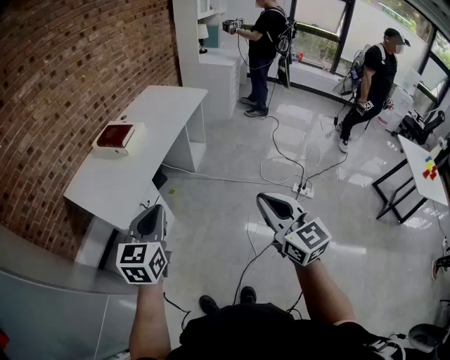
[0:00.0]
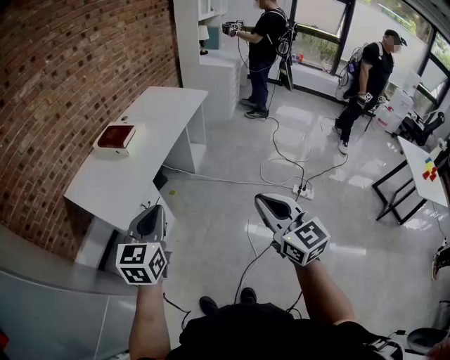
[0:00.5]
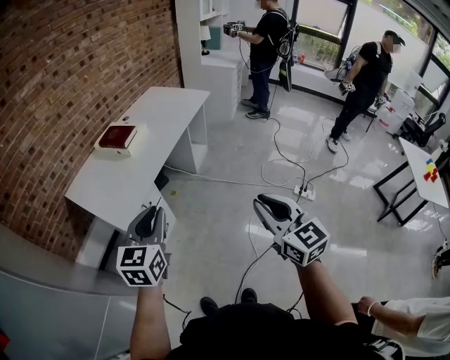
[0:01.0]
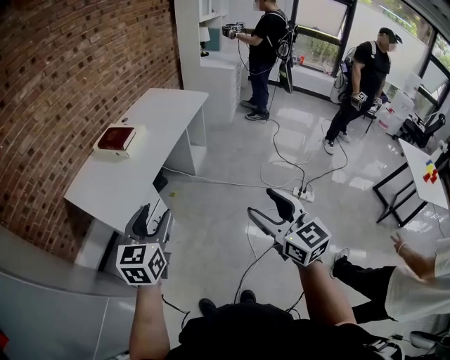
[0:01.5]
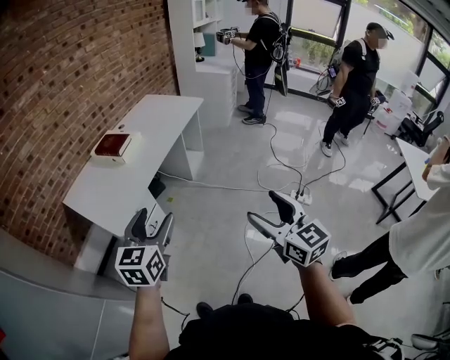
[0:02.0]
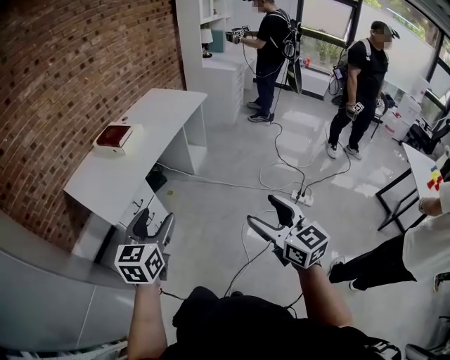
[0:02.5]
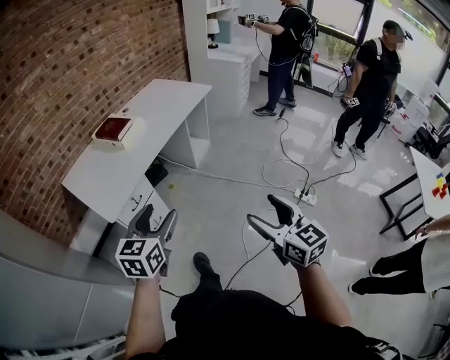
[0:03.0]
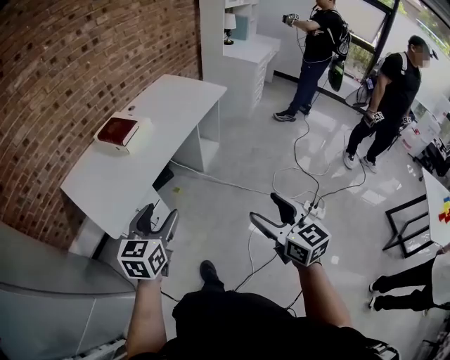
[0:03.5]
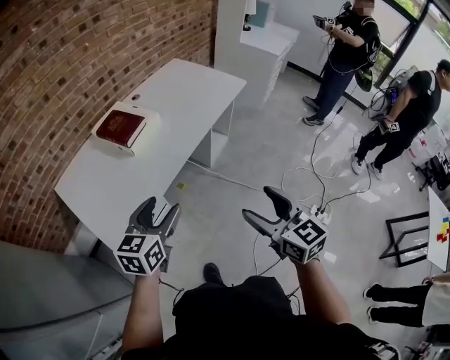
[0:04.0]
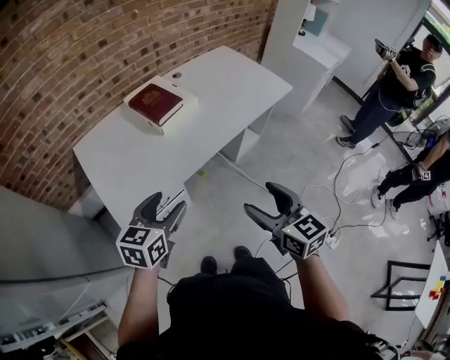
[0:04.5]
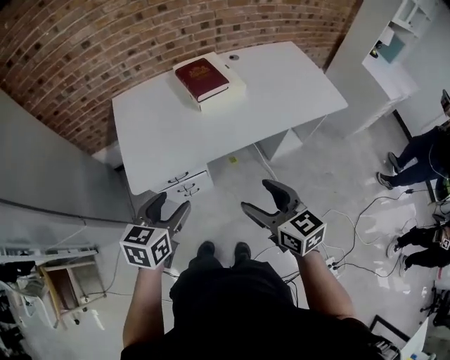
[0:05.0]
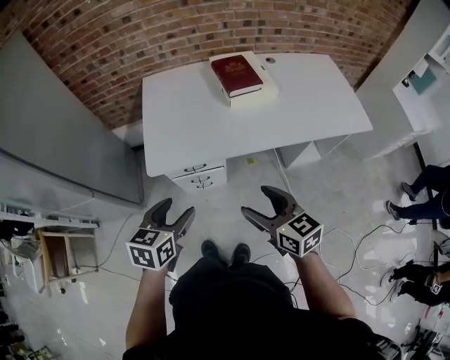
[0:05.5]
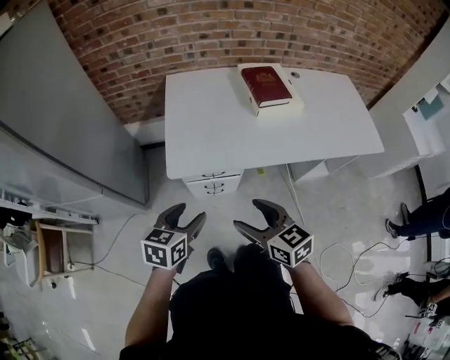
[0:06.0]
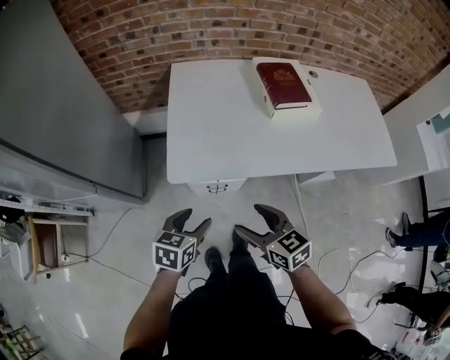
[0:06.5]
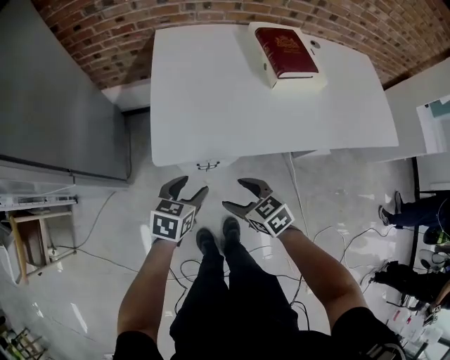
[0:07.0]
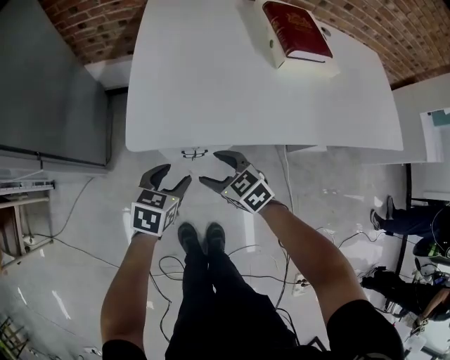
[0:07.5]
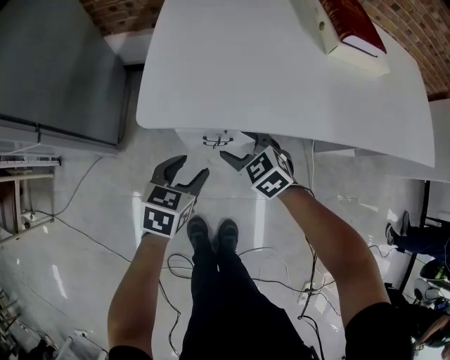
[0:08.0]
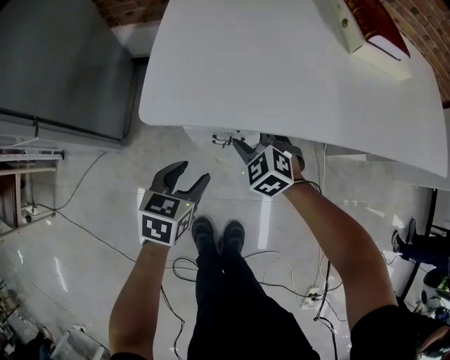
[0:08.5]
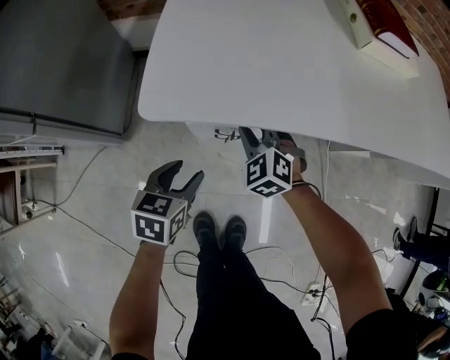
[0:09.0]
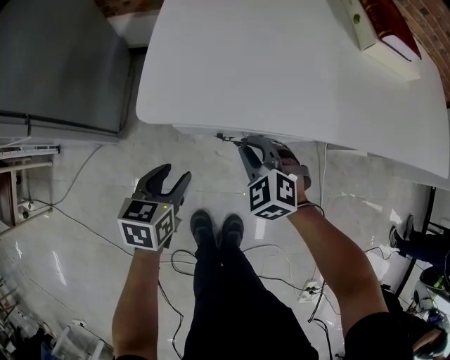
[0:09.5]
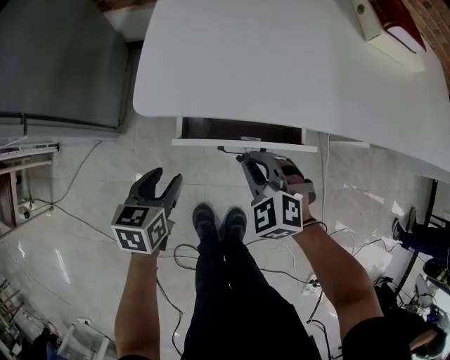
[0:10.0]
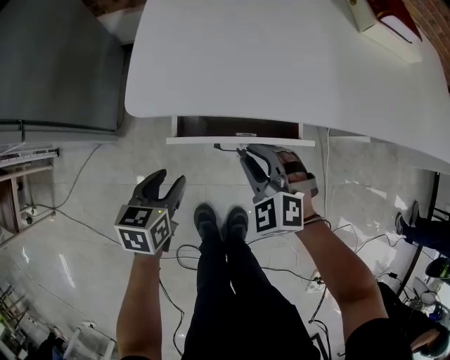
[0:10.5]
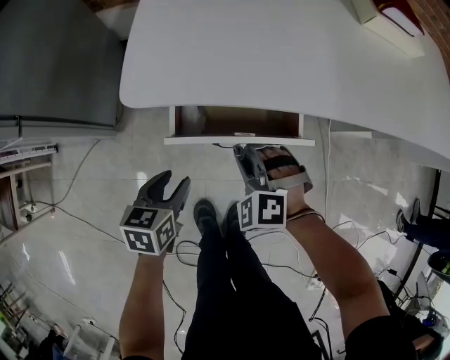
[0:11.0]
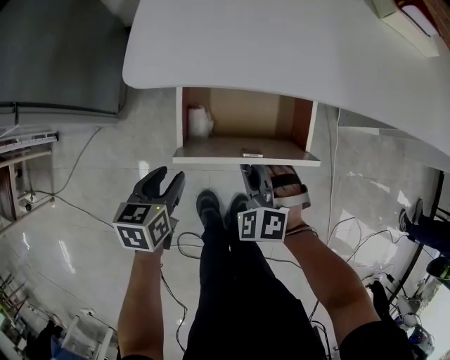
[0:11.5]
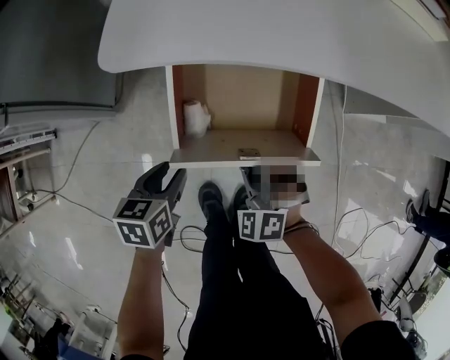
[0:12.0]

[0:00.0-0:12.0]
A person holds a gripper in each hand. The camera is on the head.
0:00.0 to 0:02.0: The right gripper opens its fingers, while the left gripper opens its fingers.
0:02.0 to 0:04.0: The two grippers go about 30 cm forward.
0:04.0 to 0:06.0: The left gripper moves approximately 20 cm, and rotates about 40 degrees. The right gripper ends up roughly 25 cm from where it was, and changes its angle by about 60 degrees.
0:06.0 to 0:08.0: The right gripper travels downward and forward by approximately 40 cm, and turns by approximately 40 degrees. The left gripper travels downward by approximately 30 cm.
0:08.0 to 0:10.0: The left gripper travels to the left and downward by about 10 cm. Meanwhile the right gripper travels backward by some 5 cm, and closes.
0:10.0 to 0:12.0: The left gripper moves downward, about 5 cm, while the right gripper shifts roughly 10 cm downward and backward.

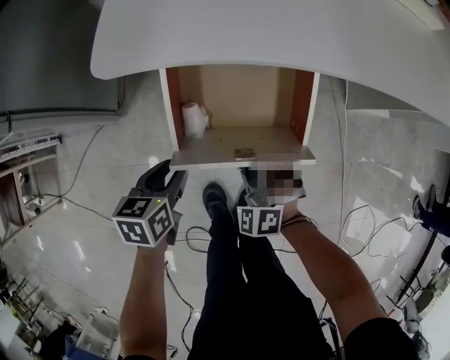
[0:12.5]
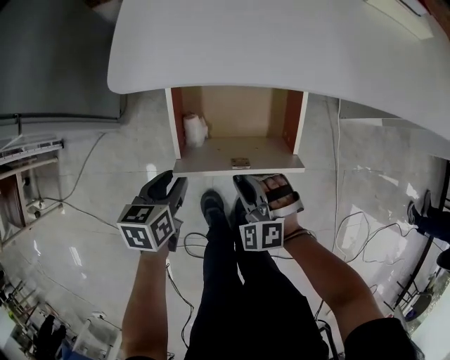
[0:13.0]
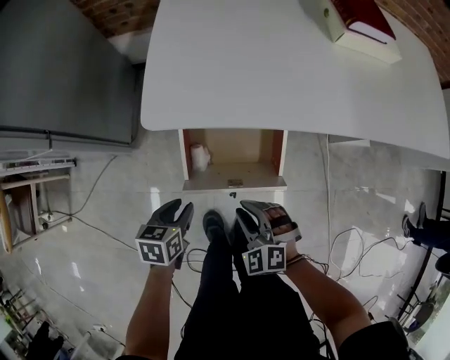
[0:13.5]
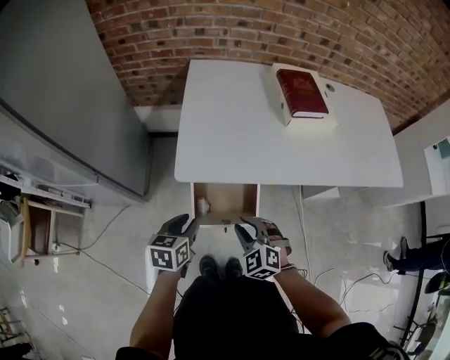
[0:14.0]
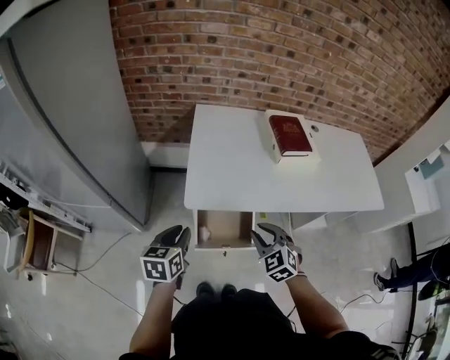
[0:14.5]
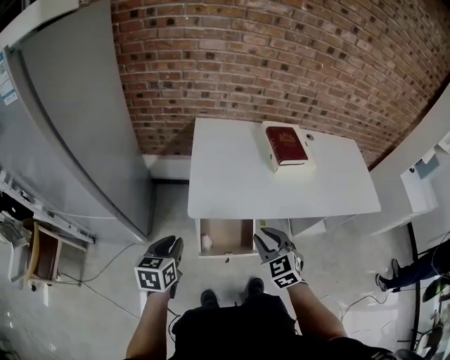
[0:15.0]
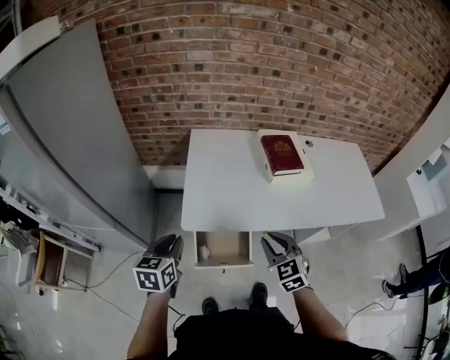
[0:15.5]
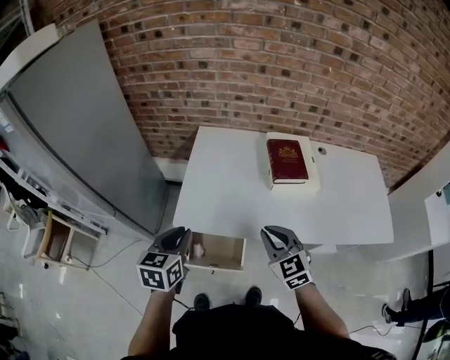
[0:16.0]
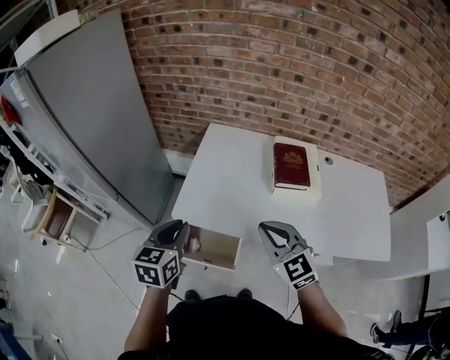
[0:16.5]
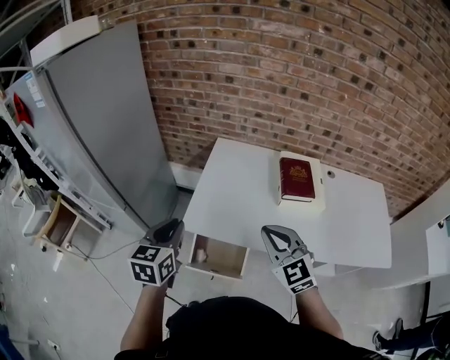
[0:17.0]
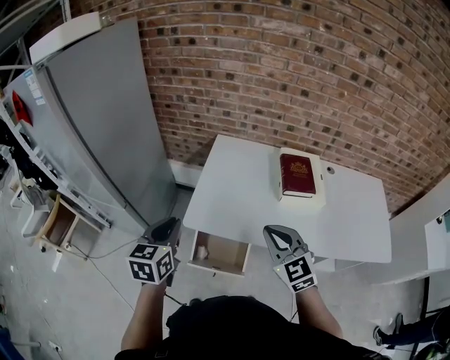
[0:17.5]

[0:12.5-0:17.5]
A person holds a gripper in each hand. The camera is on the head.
0:12.5 to 0:15.0: Both grippers travel together upward, approximately 40 cm. The left gripper rotates about 20 degrees; the right gripper changes its angle by approximately 30 degrees.
0:15.0 to 0:17.5: The right gripper goes approximately 15 cm upward, to the right and forward, and turns by about 20 degrees; the left gripper shifts about 15 cm upward and to the right.

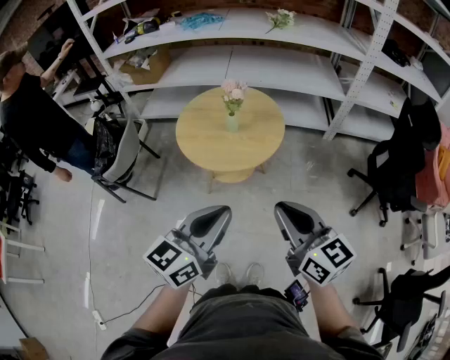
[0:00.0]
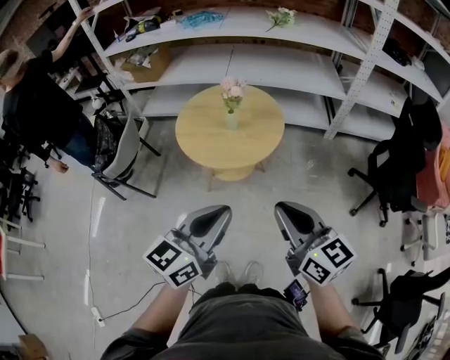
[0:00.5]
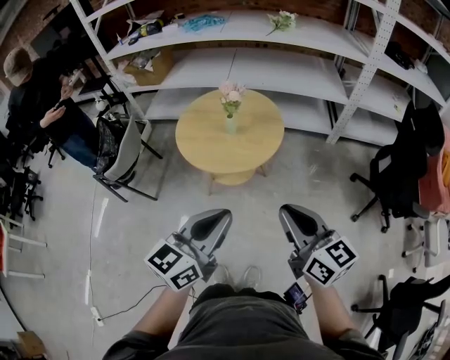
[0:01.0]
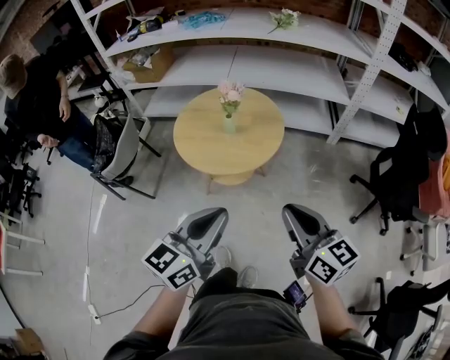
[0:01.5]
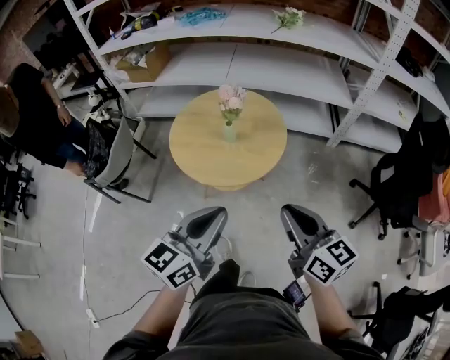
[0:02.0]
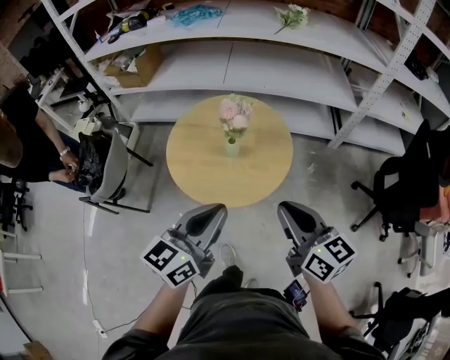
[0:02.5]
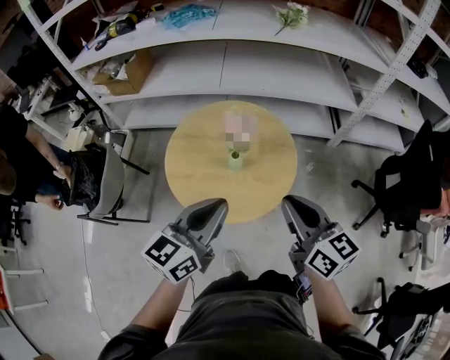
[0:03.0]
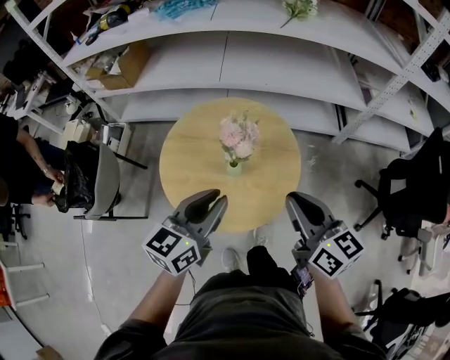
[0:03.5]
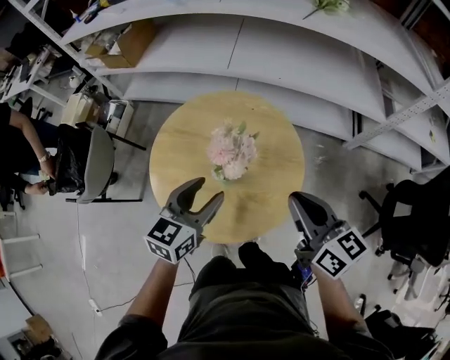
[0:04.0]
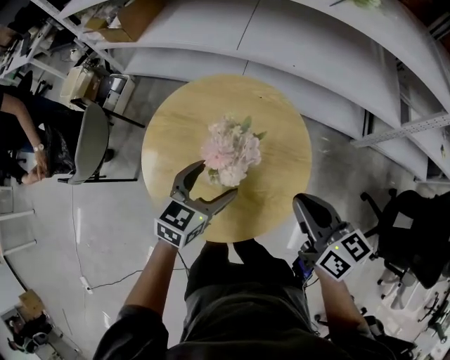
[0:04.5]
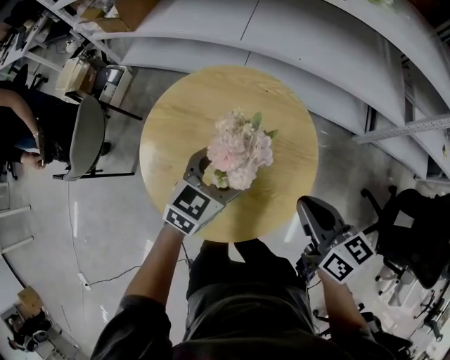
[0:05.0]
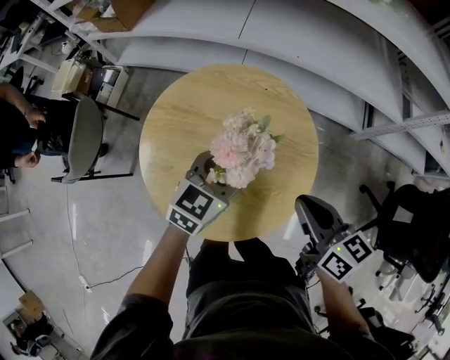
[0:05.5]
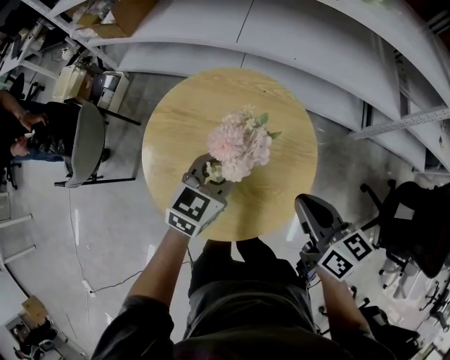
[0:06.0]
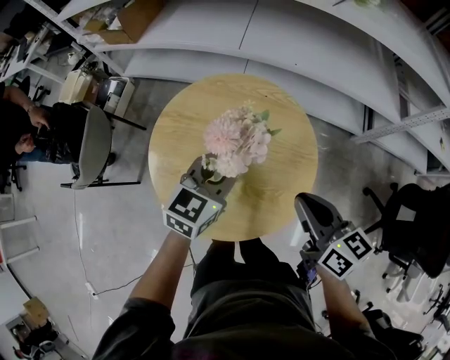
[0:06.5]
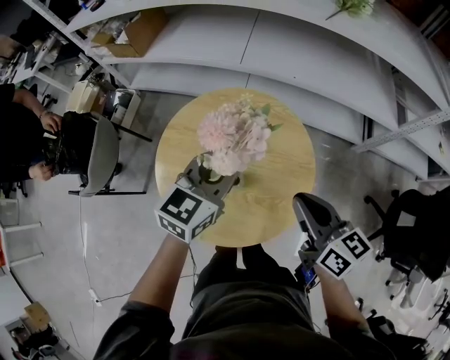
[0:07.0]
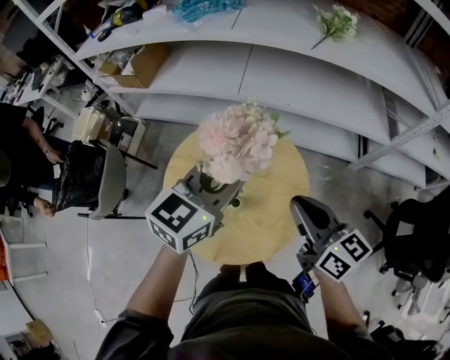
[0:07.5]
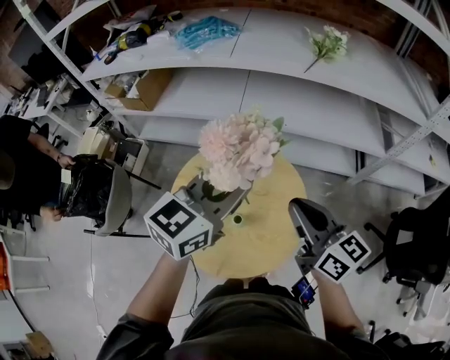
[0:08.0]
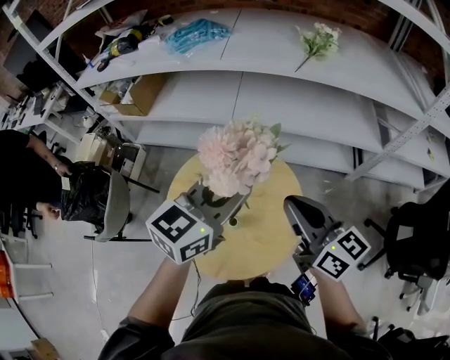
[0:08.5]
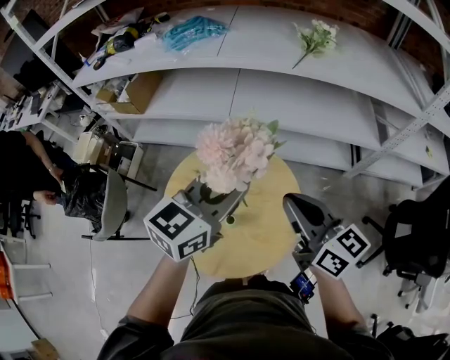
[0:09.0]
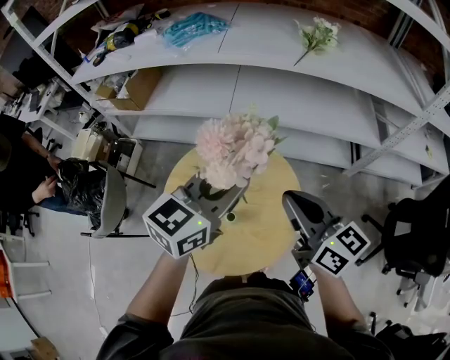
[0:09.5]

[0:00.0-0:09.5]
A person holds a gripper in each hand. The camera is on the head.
0:00.0 to 0:02.0: Both grippers move forward, approximately 10 cm.
0:02.0 to 0:04.0: The grippers both shift forward by roughly 35 cm. The left gripper turns by some 20 degrees, and opens.
0:04.0 to 0:05.5: The right gripper moves downward, some 10 cm. The left gripper heads downward and forward, covering some 10 cm, and opens and closes again.
0:05.5 to 0:07.5: The right gripper goes approximately 10 cm upward. Meanwhile the left gripper shifts some 20 cm upward, and closes its fingers.
0:07.5 to 0:09.5: The right gripper shifts some 5 cm upward.
